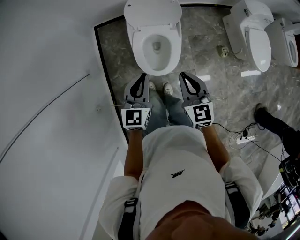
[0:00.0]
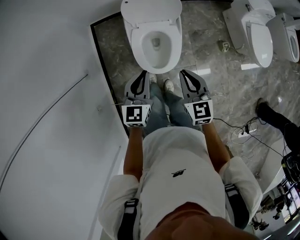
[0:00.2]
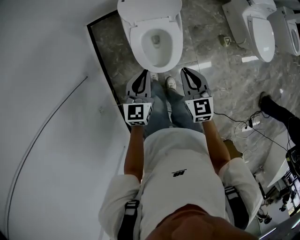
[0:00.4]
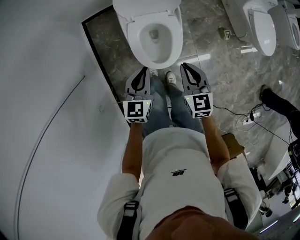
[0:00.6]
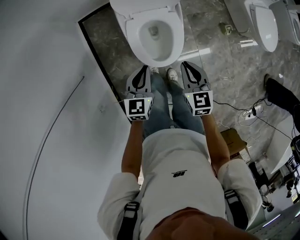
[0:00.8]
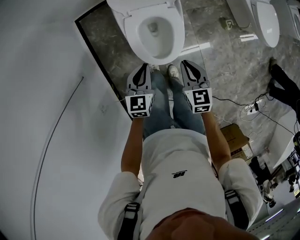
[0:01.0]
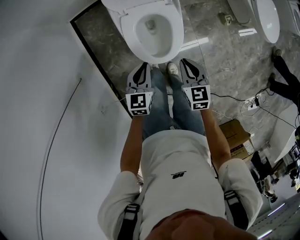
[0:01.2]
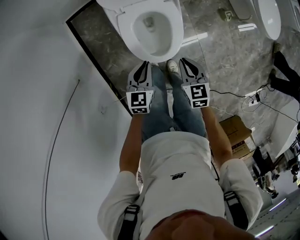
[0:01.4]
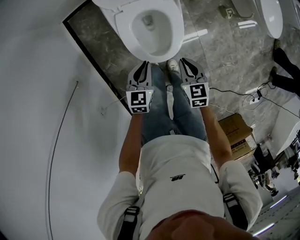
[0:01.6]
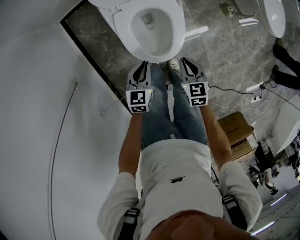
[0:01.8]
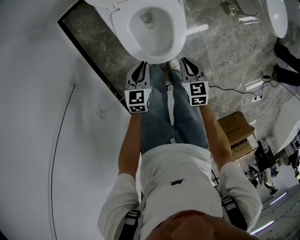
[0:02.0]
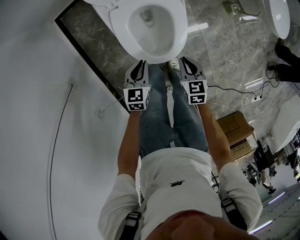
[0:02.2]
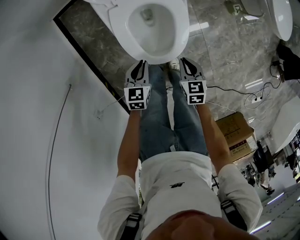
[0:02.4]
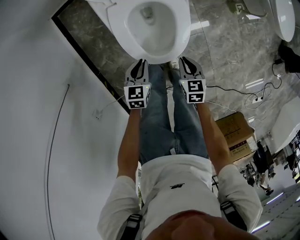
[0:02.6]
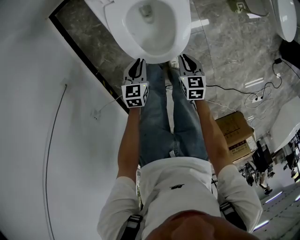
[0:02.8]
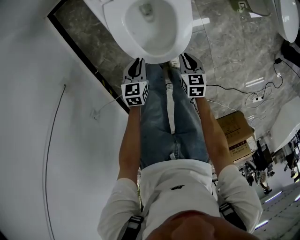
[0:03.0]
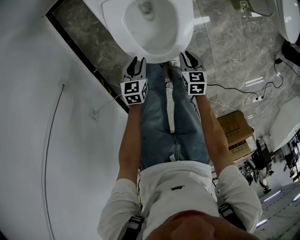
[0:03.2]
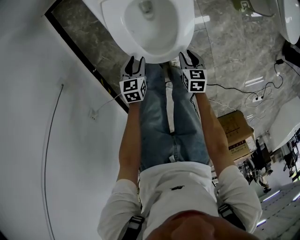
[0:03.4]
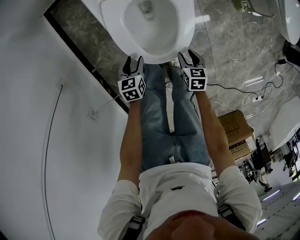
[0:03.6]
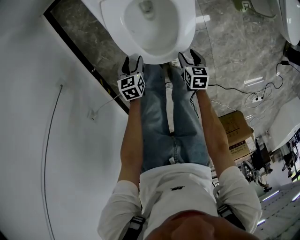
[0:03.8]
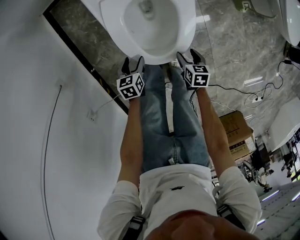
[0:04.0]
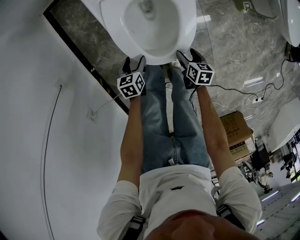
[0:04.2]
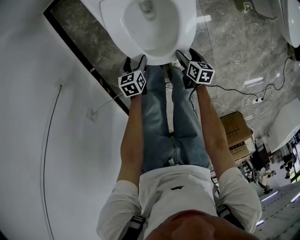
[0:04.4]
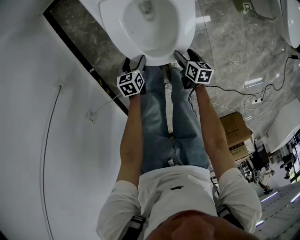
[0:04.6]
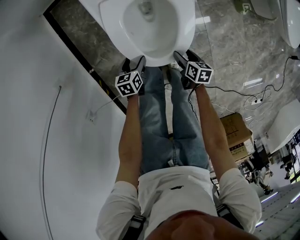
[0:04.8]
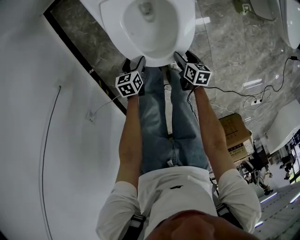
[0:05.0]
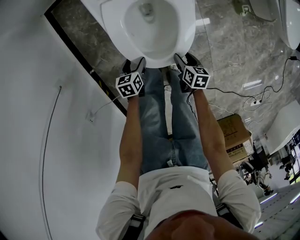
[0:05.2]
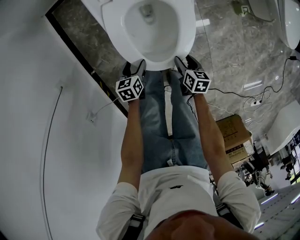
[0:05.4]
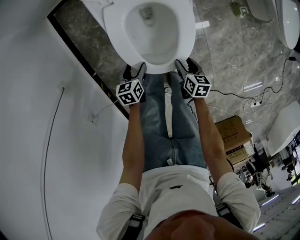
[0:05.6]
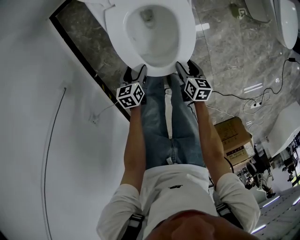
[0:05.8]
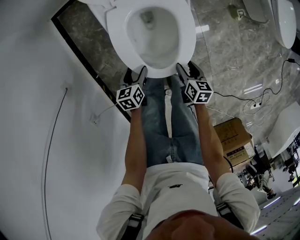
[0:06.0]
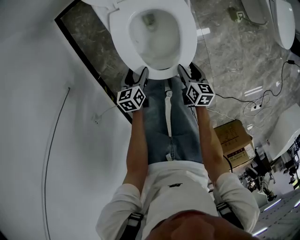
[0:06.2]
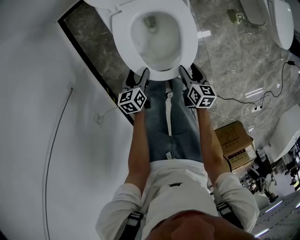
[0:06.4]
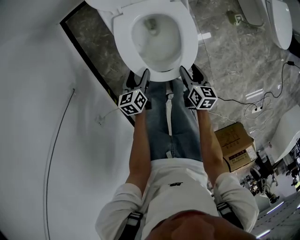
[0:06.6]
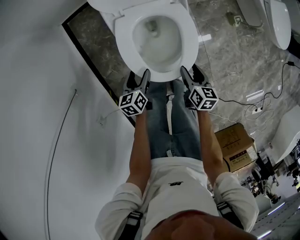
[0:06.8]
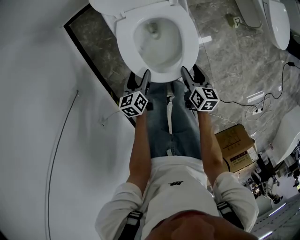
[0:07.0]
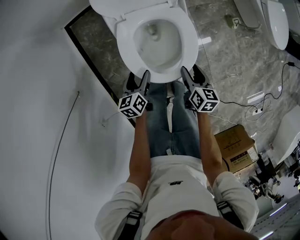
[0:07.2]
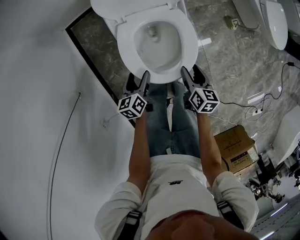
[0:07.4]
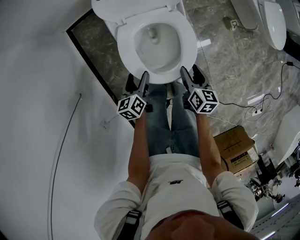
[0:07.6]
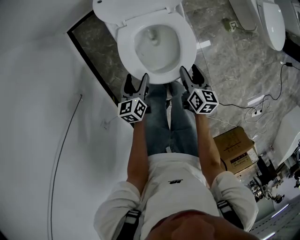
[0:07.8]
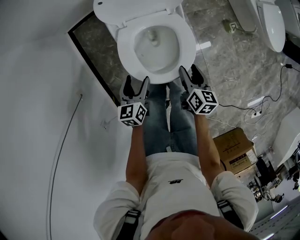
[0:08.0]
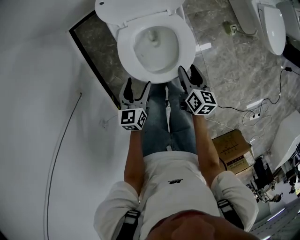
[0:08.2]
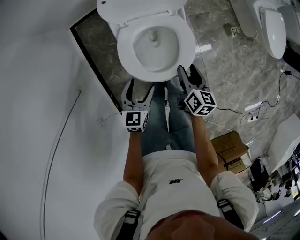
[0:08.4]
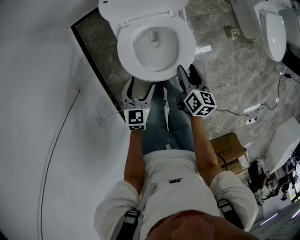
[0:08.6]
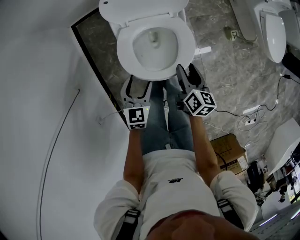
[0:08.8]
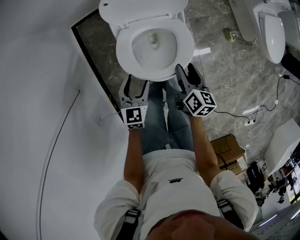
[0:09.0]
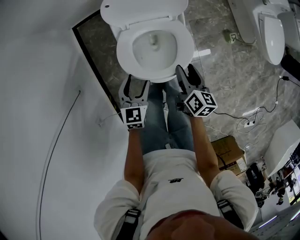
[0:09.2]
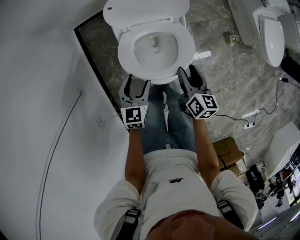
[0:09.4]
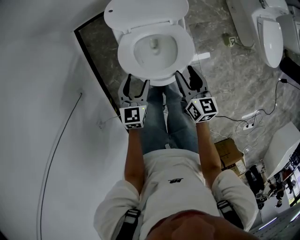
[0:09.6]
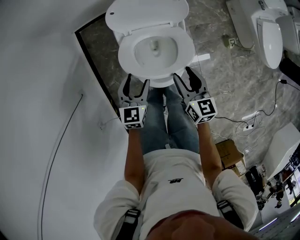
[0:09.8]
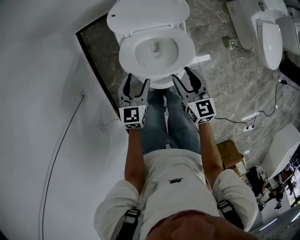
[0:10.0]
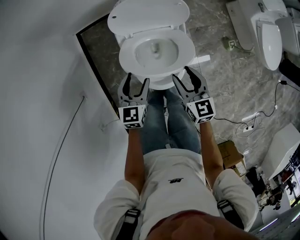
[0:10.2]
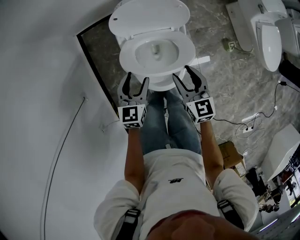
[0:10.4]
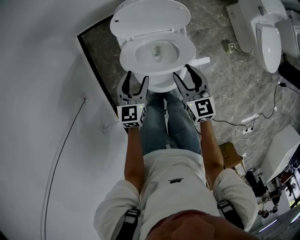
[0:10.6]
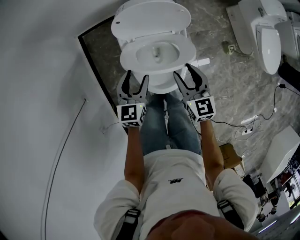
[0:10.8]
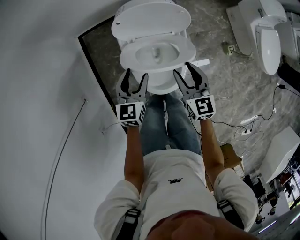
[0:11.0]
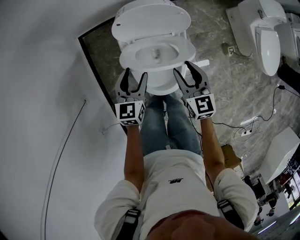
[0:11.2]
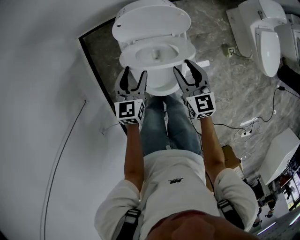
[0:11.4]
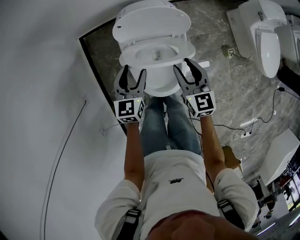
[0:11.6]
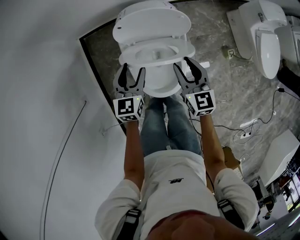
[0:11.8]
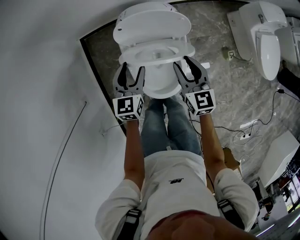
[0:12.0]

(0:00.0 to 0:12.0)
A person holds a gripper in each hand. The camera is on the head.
0:00.0 - 0:01.6: The grippers both shift downward by about 25 cm. The left gripper swivels approximately 30 degrees. Meanwhile the right gripper changes its angle by roughly 30 degrees.
0:01.6 - 0:03.0: The grippers both shift downward by roughly 20 cm.
0:03.0 - 0:04.4: Both grippers travel together downward, roughly 10 cm. The left gripper opens up; the right gripper turns by some 30 degrees, and opens up.
0:04.4 - 0:06.0: Both grippers travel together upward, approximately 10 cm.
0:06.0 - 0:07.6: Both grippers move upward and forward, roughly 15 cm.
0:07.6 - 0:09.0: The right gripper is displaced upward and forward by about 10 cm; the left gripper shifts approximately 10 cm upward, and rotates approximately 40 degrees.
0:09.0 - 0:10.4: The right gripper heads upward, covering some 5 cm, and changes its angle by about 40 degrees. Meanwhile the left gripper shifts about 5 cm forward.
0:10.4 - 0:12.0: Both grippers travel together forward, some 10 cm.

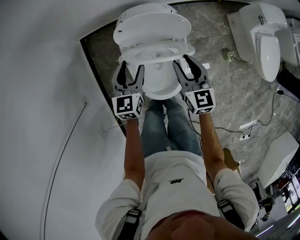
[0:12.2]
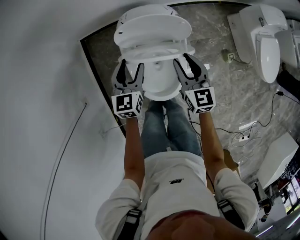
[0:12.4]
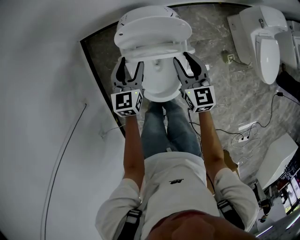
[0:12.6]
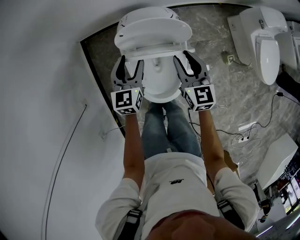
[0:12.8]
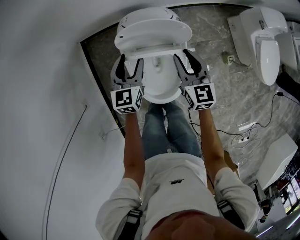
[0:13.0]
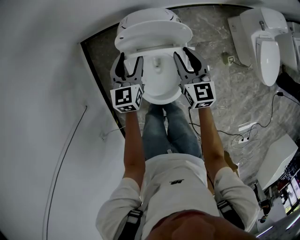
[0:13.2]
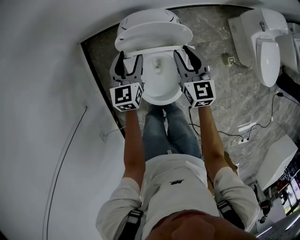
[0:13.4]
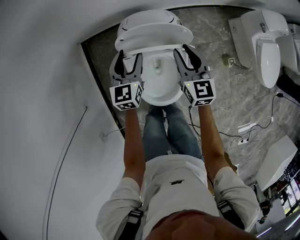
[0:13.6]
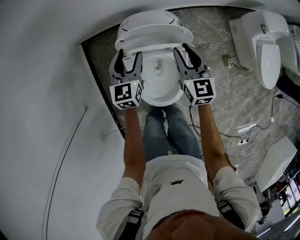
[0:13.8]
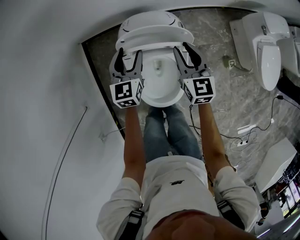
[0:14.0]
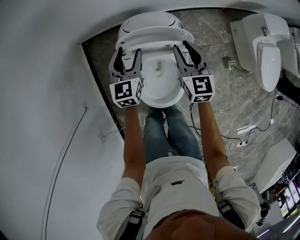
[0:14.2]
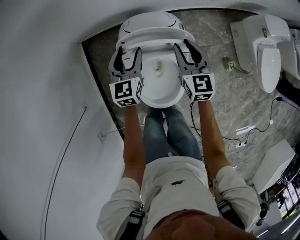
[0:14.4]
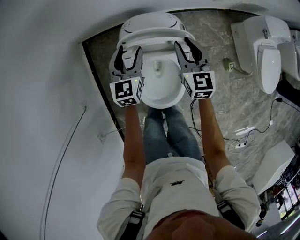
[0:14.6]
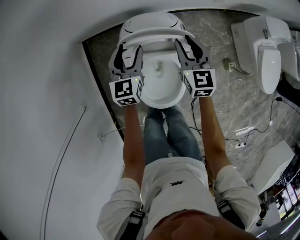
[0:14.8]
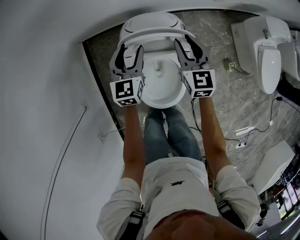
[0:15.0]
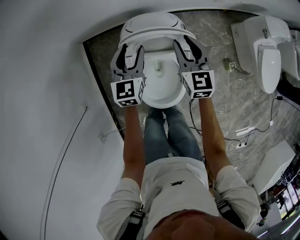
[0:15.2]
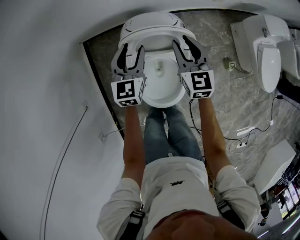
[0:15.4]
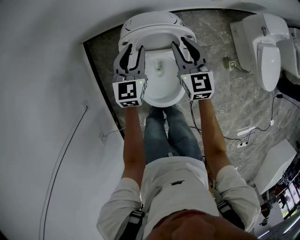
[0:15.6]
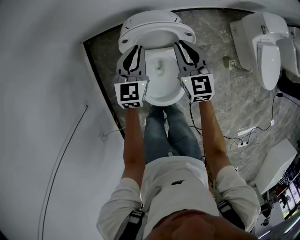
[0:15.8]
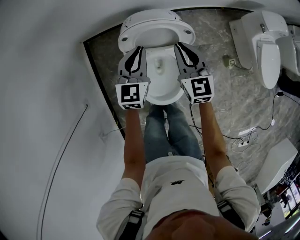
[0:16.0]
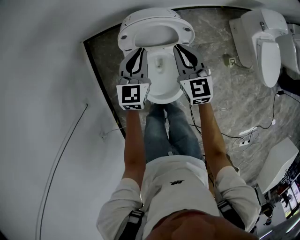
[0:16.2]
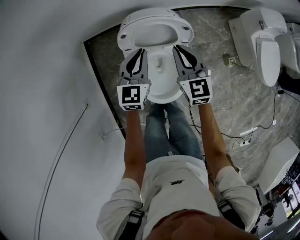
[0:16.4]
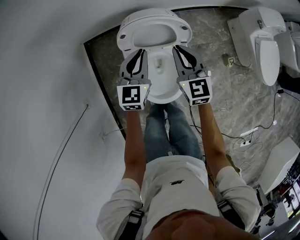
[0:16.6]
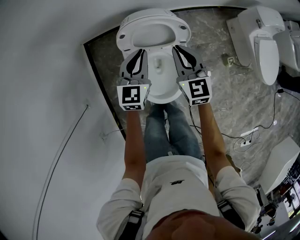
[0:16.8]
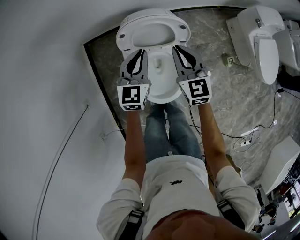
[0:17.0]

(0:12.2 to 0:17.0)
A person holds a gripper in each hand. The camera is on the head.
0:12.2 - 0:13.8: The grippers both shift forward by approximately 10 cm.
0:13.8 - 0:15.4: There are only small adjustments of the grippers.
0:15.4 - 0:17.0: The grippers both shift backward by about 10 cm. The left gripper closes up. The right gripper closes its fingers.

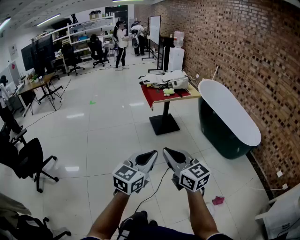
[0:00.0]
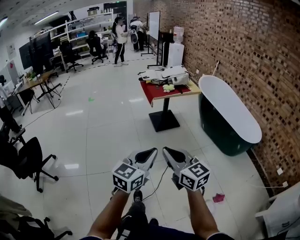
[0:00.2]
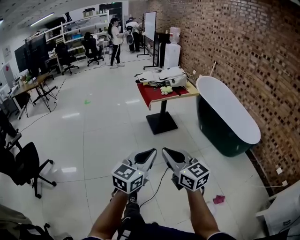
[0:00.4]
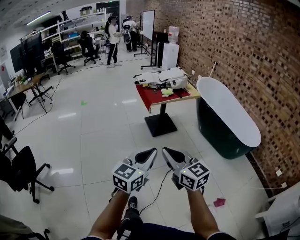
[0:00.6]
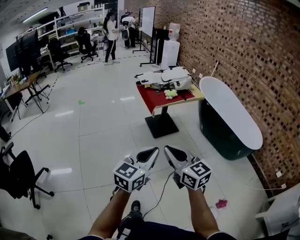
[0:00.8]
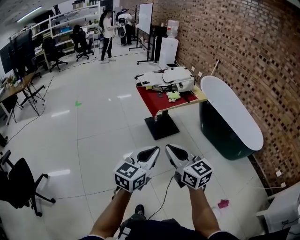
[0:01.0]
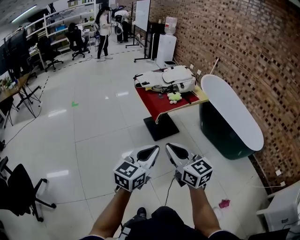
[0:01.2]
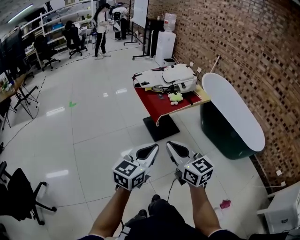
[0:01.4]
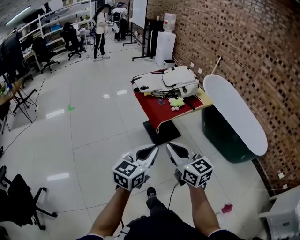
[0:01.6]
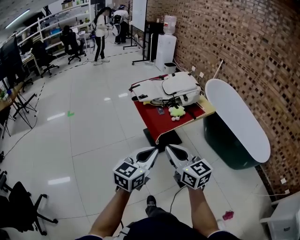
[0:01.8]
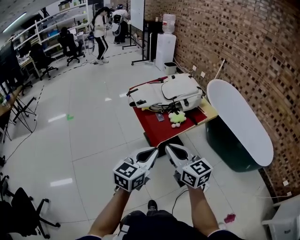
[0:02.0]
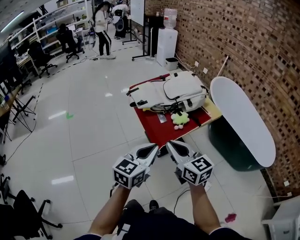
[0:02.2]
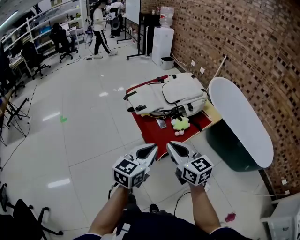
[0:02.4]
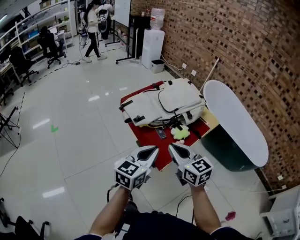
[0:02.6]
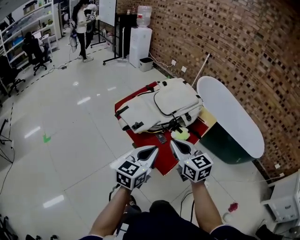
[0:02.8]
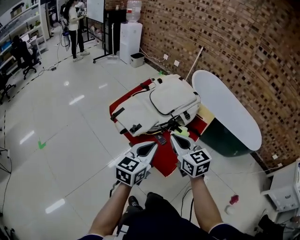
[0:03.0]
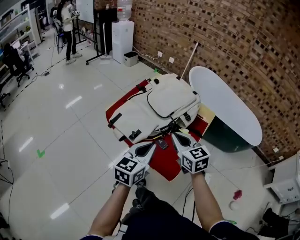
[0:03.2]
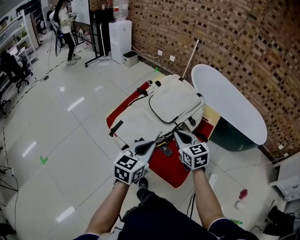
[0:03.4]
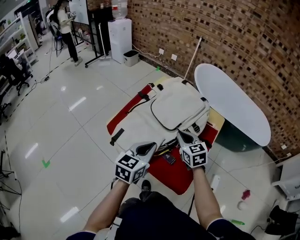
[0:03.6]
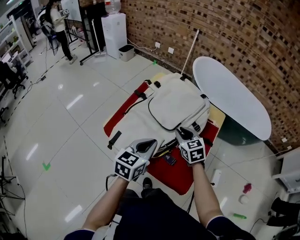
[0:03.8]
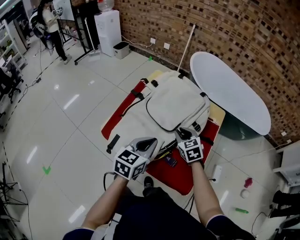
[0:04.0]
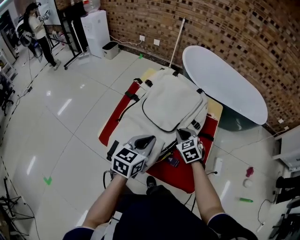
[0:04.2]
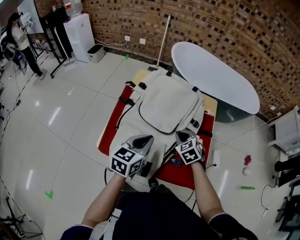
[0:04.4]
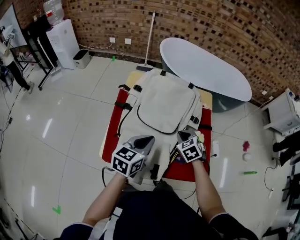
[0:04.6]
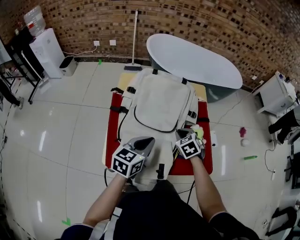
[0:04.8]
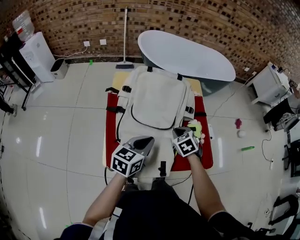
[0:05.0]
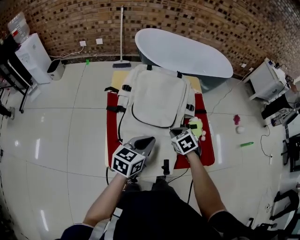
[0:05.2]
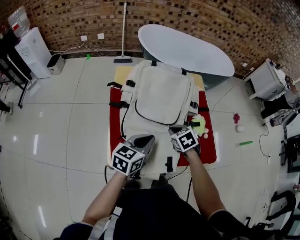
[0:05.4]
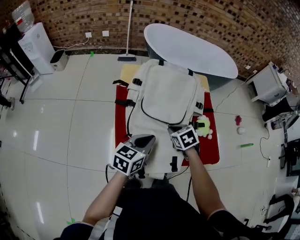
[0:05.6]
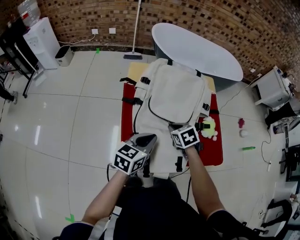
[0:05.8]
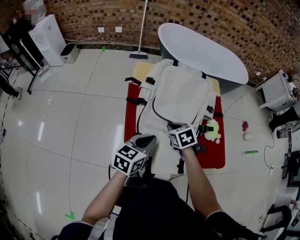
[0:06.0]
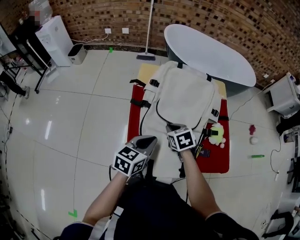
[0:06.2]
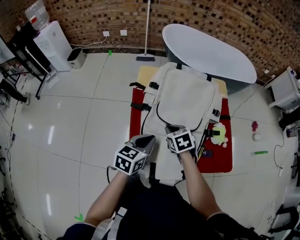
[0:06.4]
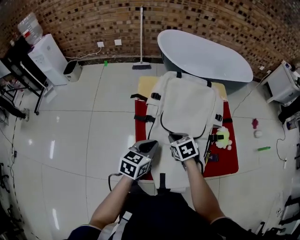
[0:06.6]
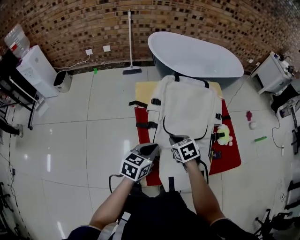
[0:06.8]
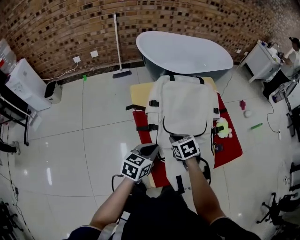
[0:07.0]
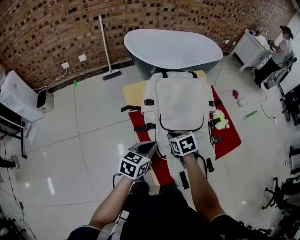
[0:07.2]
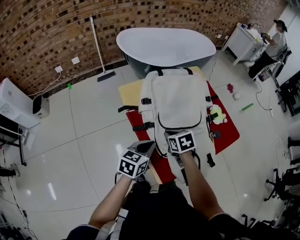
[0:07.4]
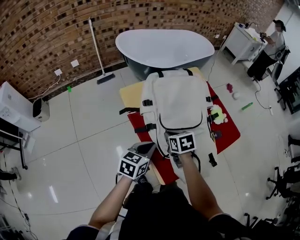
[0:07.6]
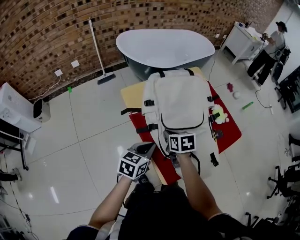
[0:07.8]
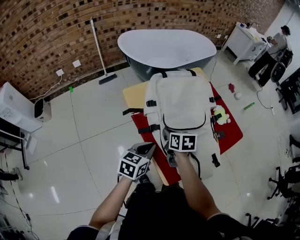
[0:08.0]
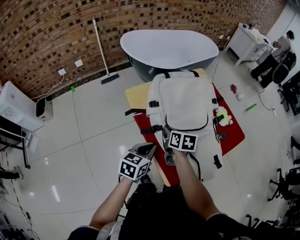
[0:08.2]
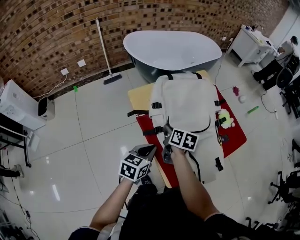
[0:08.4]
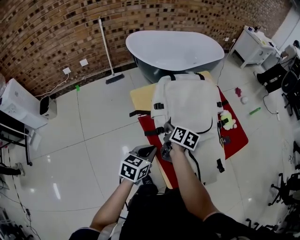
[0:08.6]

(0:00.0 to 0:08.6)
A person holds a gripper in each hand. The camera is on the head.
0:00.0 - 0:01.4: Both grippers are carried forward, some 40 cm.
0:01.4 - 0:02.8: Both grippers are carried forward, some 40 cm. The right gripper swivels approximately 20 degrees.
0:02.8 - 0:04.4: The right gripper changes place by about 30 cm, and tips its fingers downward by roughly 30 degrees; the left gripper shifts by approximately 30 cm, and turns by roughly 30 degrees.
0:04.4 - 0:05.8: The two grippers go approximately 10 cm to the left. The right gripper turns by roughly 30 degrees. The left gripper changes its angle by roughly 20 degrees.
0:05.8 - 0:07.2: The right gripper shifts by approximately 10 cm, and turns by approximately 30 degrees; the left gripper moves roughly 15 cm, and swivels some 20 degrees.
0:07.2 - 0:08.6: The right gripper goes some 10 cm to the left and forward, and twists some 50 degrees clockwise, seen from behind.
